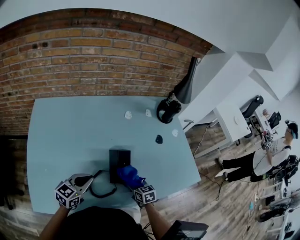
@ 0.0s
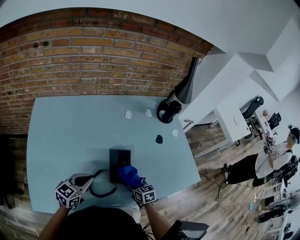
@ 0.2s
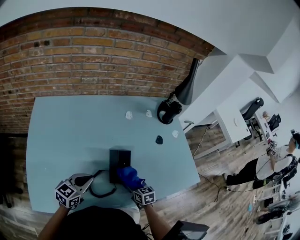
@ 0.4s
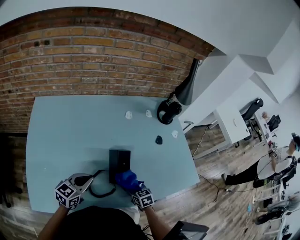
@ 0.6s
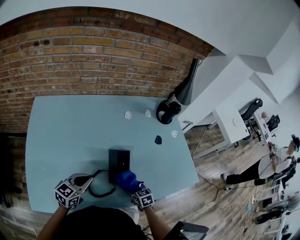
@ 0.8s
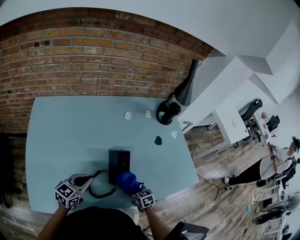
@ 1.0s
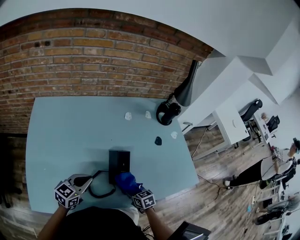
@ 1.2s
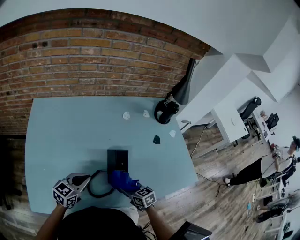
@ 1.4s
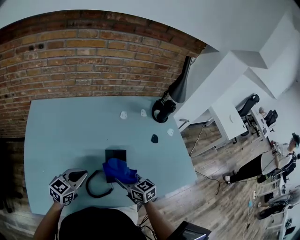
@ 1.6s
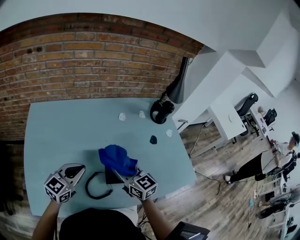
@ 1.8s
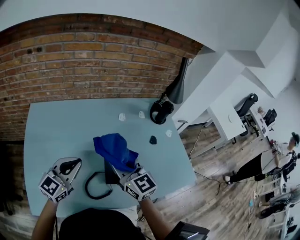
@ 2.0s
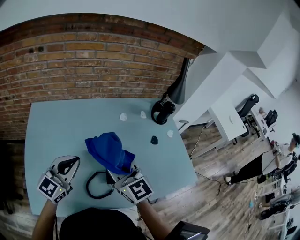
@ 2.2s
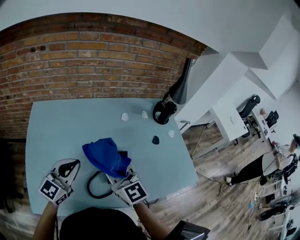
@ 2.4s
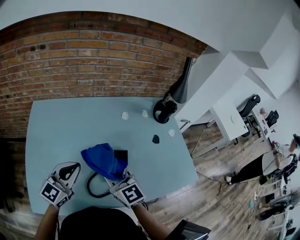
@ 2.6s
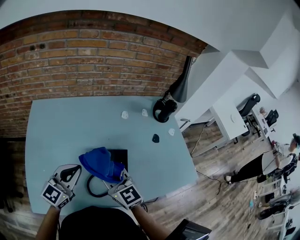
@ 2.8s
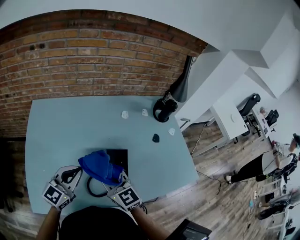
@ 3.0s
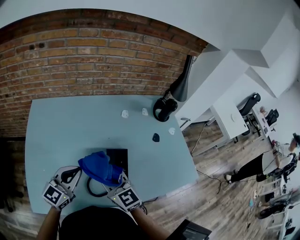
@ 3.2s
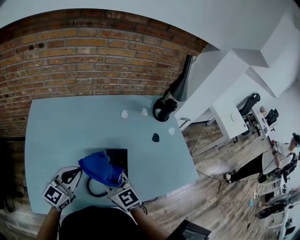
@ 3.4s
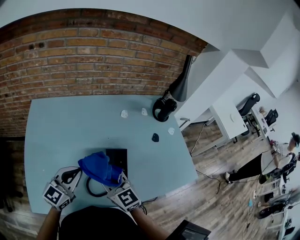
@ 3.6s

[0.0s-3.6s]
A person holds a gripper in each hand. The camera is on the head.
0.0s to 1.8s: The right gripper goes about 25 cm upward, and tips its fingers upward by approximately 30 degrees; the left gripper is displaced upward by roughly 5 cm.
1.8s to 3.6s: The right gripper travels to the left by roughly 10 cm, and travels upward and back again, approximately 10 cm each way.

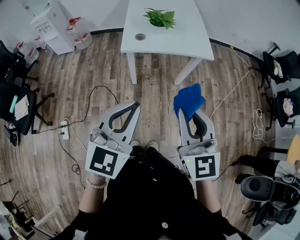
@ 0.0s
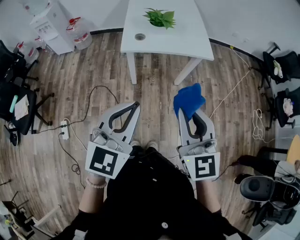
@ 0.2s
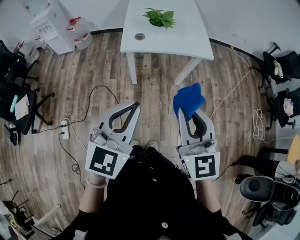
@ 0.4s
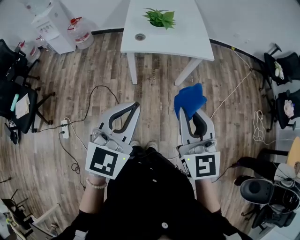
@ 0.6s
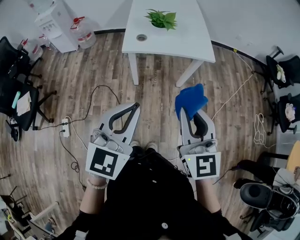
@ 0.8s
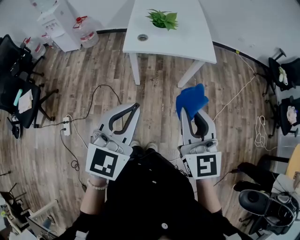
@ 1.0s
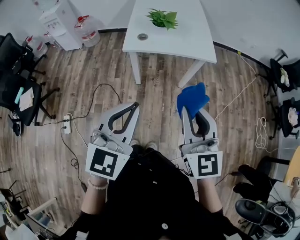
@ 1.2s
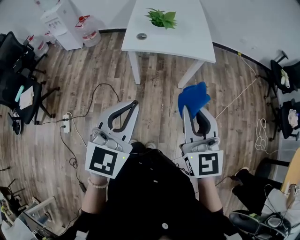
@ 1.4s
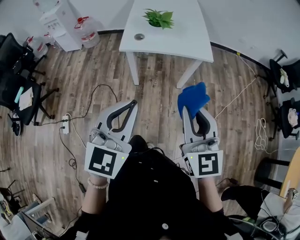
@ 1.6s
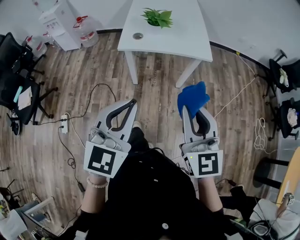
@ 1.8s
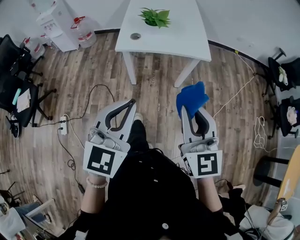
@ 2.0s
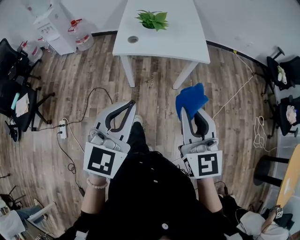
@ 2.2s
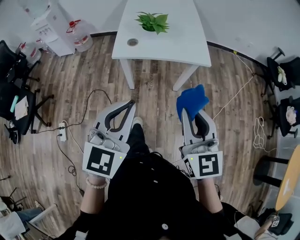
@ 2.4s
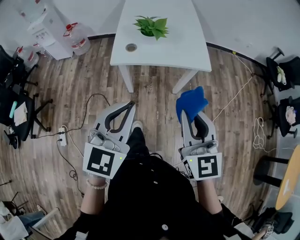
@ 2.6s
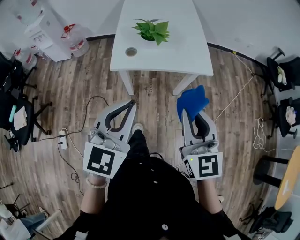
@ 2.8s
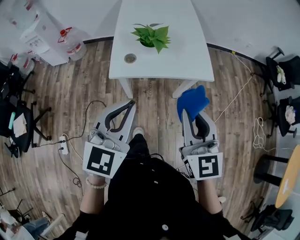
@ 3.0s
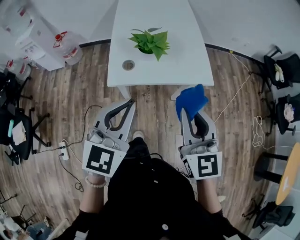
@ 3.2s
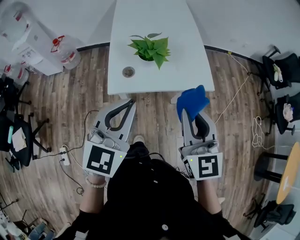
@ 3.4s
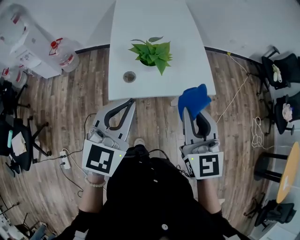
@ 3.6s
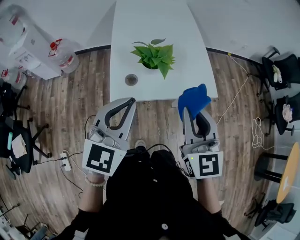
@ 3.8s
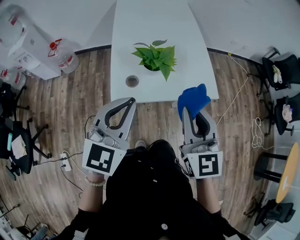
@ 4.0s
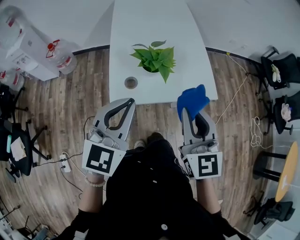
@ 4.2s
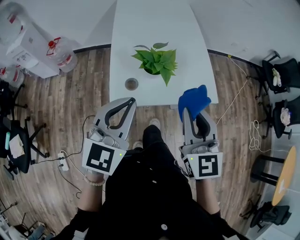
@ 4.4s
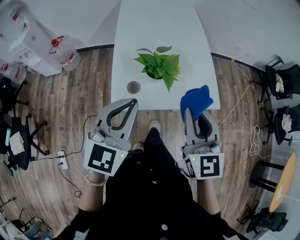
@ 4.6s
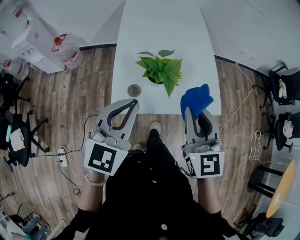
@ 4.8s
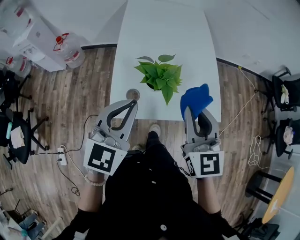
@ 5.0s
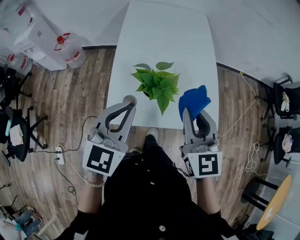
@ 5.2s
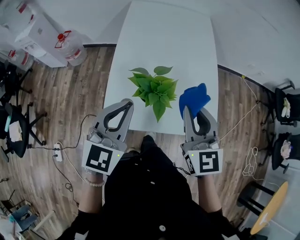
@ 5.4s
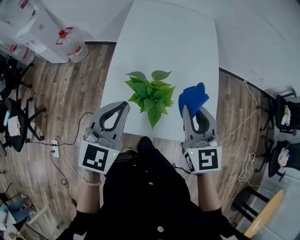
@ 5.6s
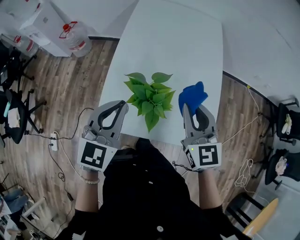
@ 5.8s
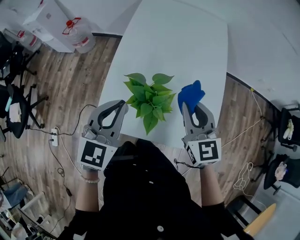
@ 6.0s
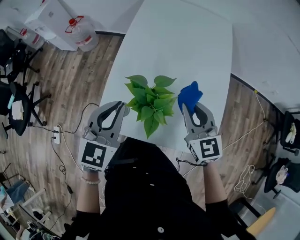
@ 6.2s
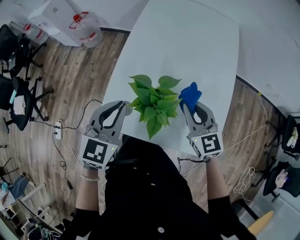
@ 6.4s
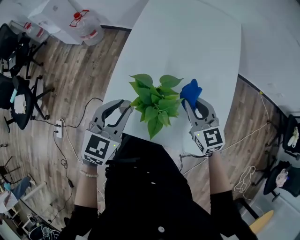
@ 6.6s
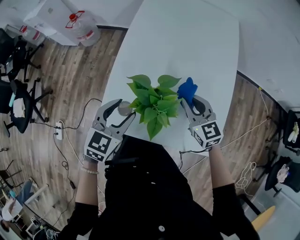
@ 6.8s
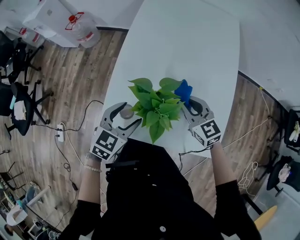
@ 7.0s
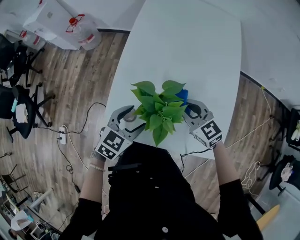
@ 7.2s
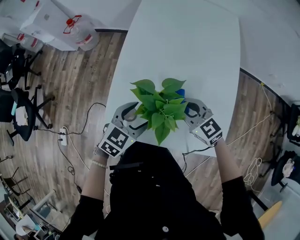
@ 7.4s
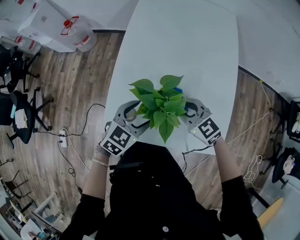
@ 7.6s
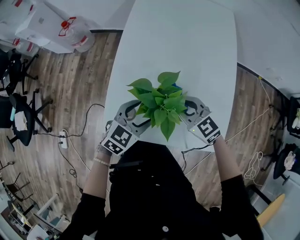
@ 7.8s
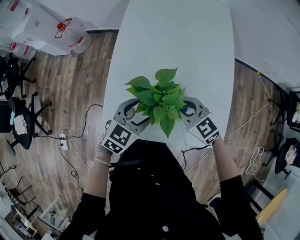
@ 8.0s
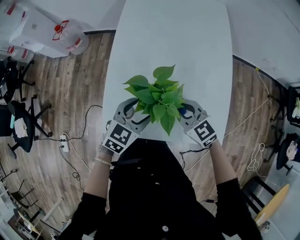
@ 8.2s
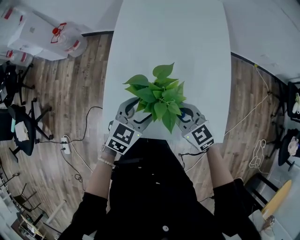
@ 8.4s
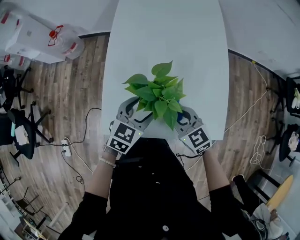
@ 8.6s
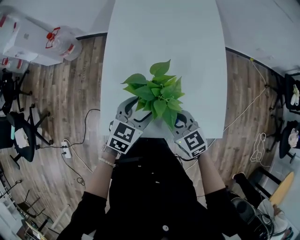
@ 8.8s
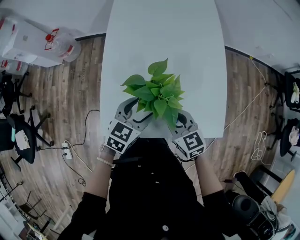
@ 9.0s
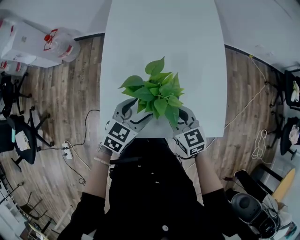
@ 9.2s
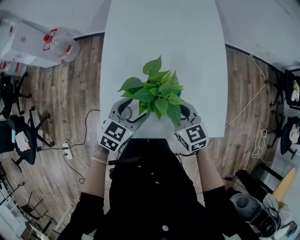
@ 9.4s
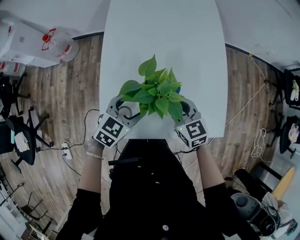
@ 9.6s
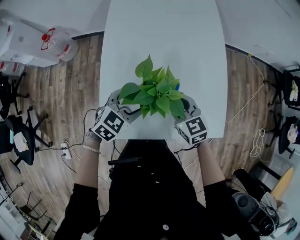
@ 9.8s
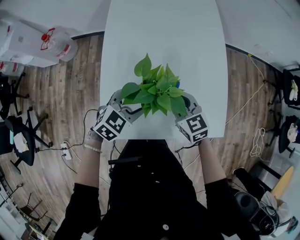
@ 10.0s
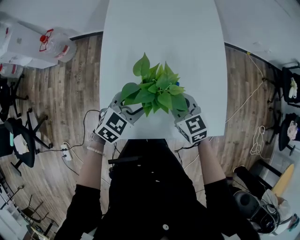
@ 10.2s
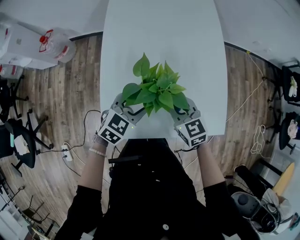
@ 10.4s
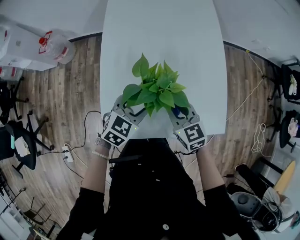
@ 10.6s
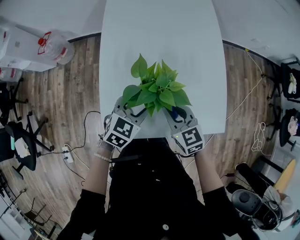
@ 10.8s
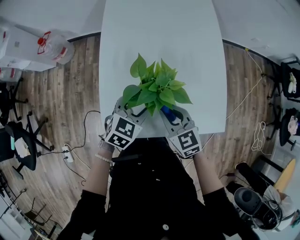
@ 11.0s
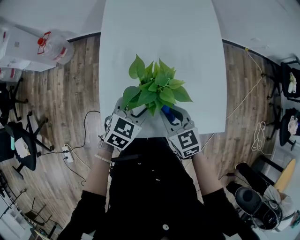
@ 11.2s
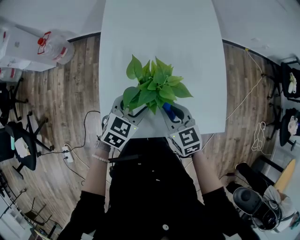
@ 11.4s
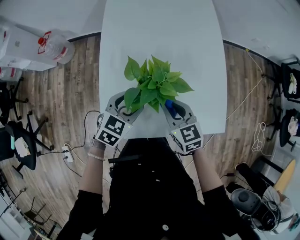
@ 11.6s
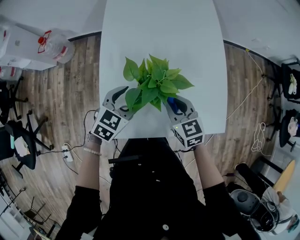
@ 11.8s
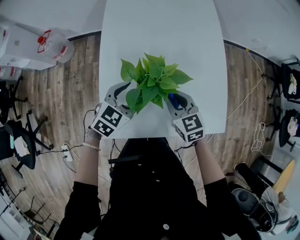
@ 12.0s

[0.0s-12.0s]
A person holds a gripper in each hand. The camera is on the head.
0.0s to 1.6s: The grippers both shift to the right by some 5 cm.
1.6s to 3.0s: Both grippers travel together forward, some 20 cm.
3.0s to 4.4s: The grippers both shift forward and to the left by roughly 20 cm.
4.4s to 6.0s: The grippers both shift forward by about 25 cm. The right gripper turns by about 30 degrees. The left gripper rotates roughly 20 degrees.
6.0s to 7.6s: The right gripper travels downward and to the left by some 15 cm, and turns by about 30 degrees. The left gripper travels downward by some 15 cm, changes its angle by about 30 degrees, and opens up.
7.6s to 9.0s: The right gripper is displaced backward by roughly 5 cm, and rotates some 30 degrees.
9.0s to 10.4s: The right gripper moves forward, approximately 5 cm.
10.4s to 12.0s: There are only small adjustments of the grippers.

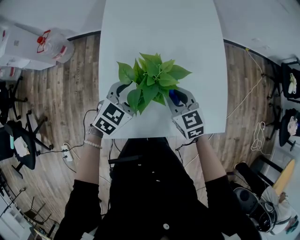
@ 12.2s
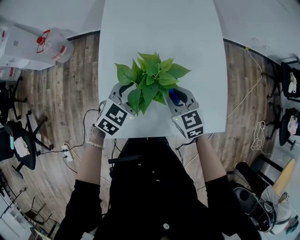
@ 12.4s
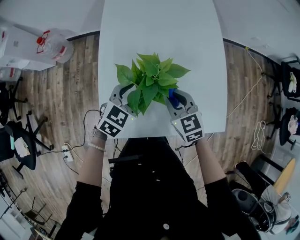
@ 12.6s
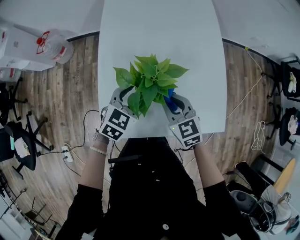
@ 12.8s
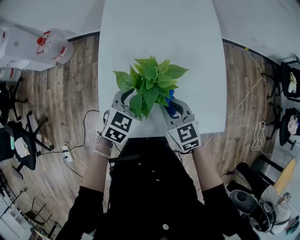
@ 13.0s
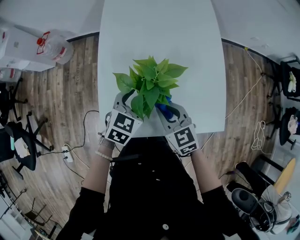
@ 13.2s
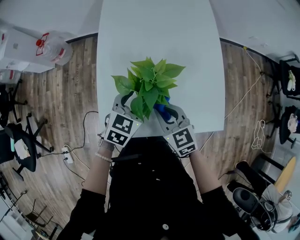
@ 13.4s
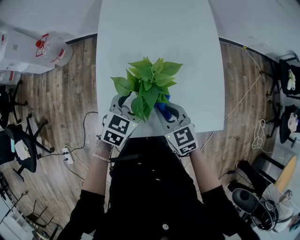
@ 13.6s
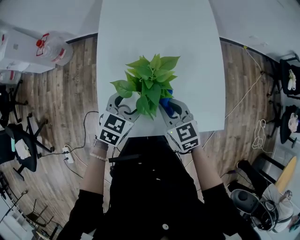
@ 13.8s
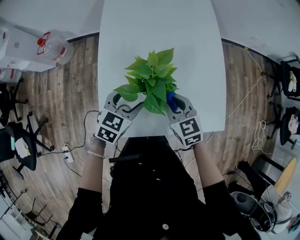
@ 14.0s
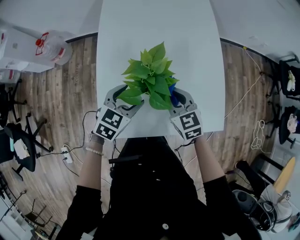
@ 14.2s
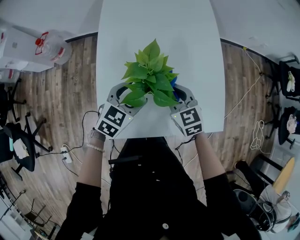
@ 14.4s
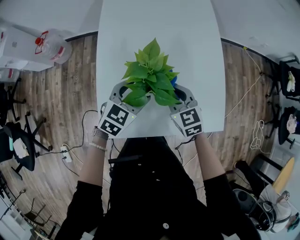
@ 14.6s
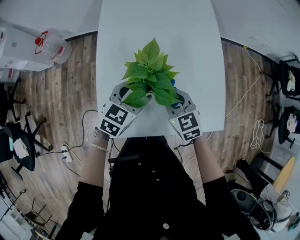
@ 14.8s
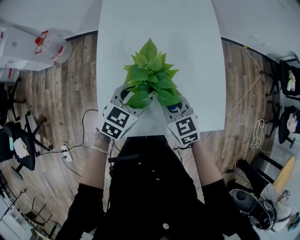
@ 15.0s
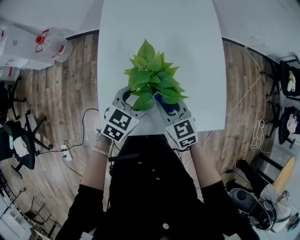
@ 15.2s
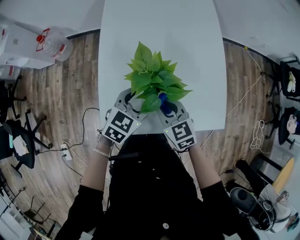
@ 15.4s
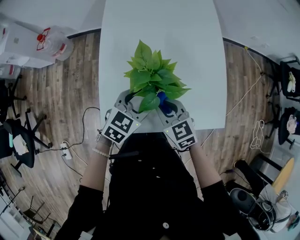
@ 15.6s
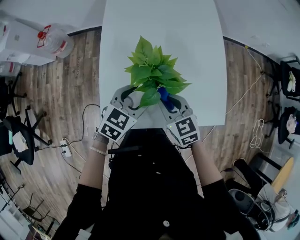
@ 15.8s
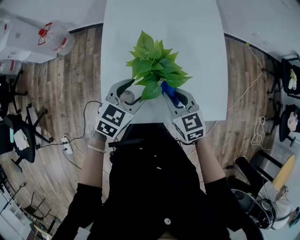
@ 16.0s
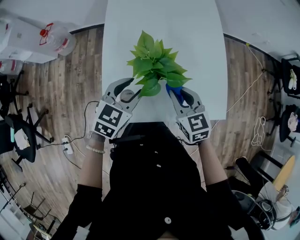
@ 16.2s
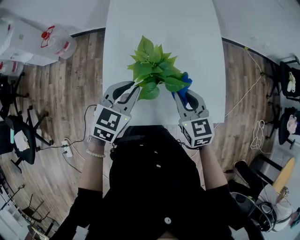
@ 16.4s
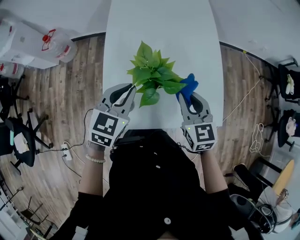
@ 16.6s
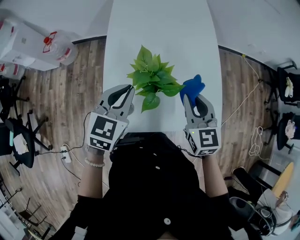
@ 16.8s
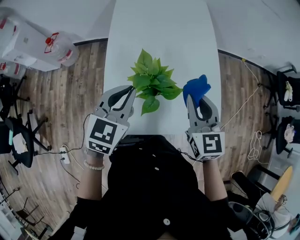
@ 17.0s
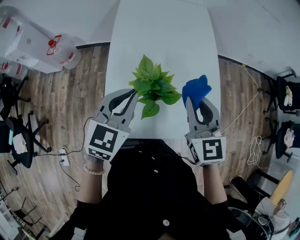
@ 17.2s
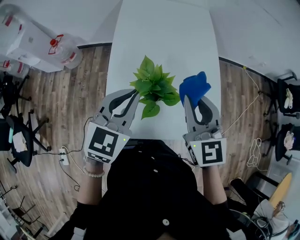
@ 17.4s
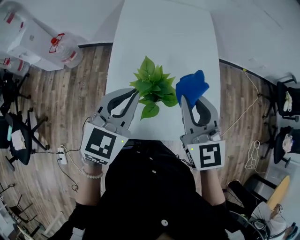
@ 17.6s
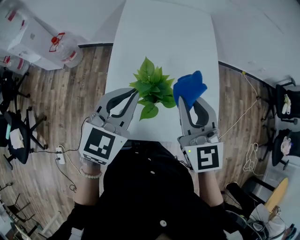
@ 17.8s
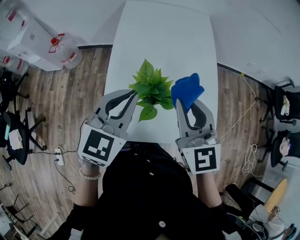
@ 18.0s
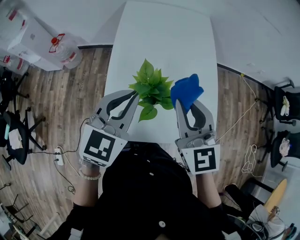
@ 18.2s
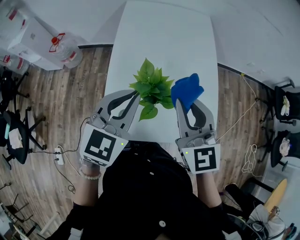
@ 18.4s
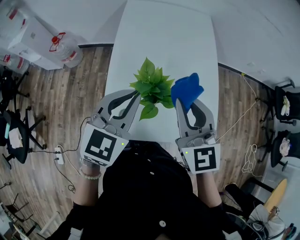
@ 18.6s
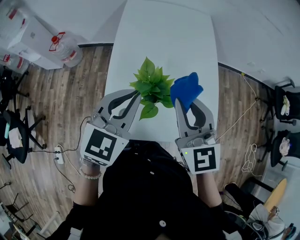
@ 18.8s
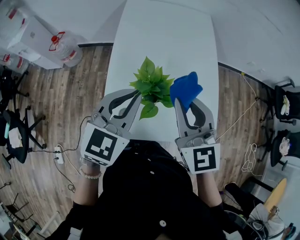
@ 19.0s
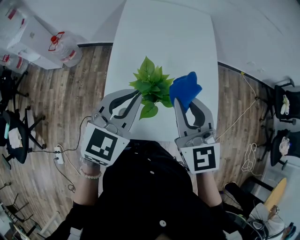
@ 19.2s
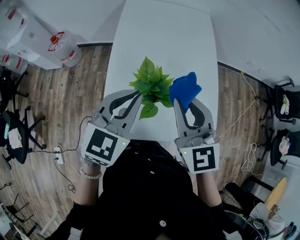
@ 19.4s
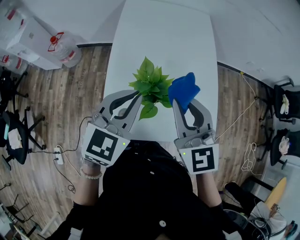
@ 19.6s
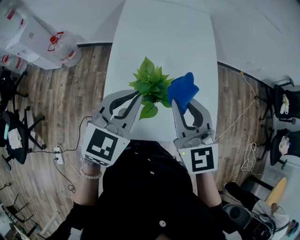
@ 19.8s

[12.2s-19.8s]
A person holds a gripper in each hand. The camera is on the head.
13.8s to 15.2s: The grippers make only small movements.
15.2s to 16.8s: The right gripper moves upward and to the right, about 15 cm, and changes its angle by approximately 20 degrees, while the left gripper heads upward and to the left, covering roughly 15 cm, and closes.
16.8s to 18.2s: The left gripper is displaced upward by roughly 10 cm, while the right gripper heads upward and to the left, covering approximately 15 cm.
18.2s to 19.8s: The grippers move only a little.
